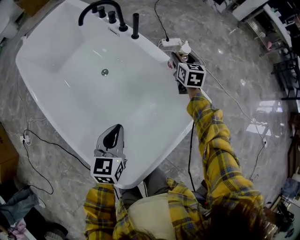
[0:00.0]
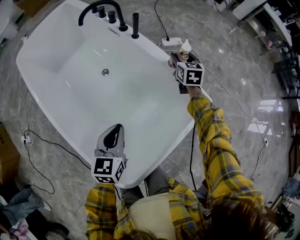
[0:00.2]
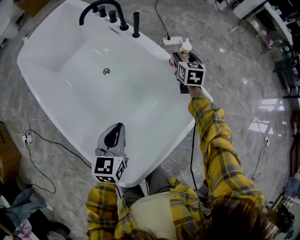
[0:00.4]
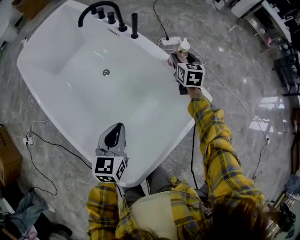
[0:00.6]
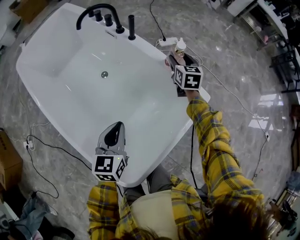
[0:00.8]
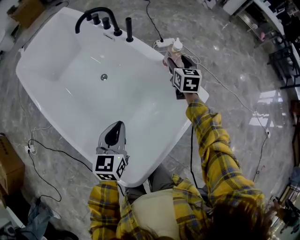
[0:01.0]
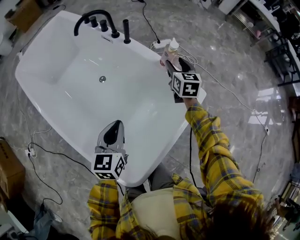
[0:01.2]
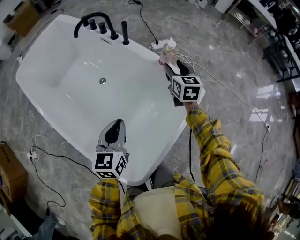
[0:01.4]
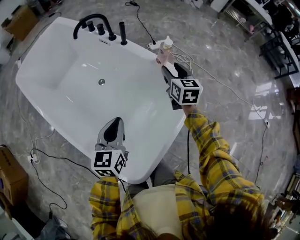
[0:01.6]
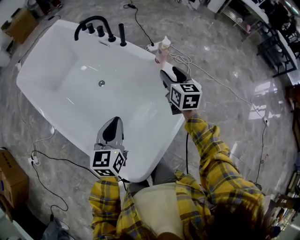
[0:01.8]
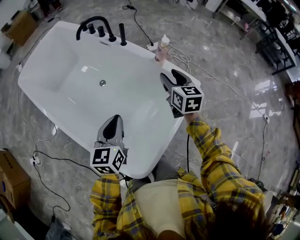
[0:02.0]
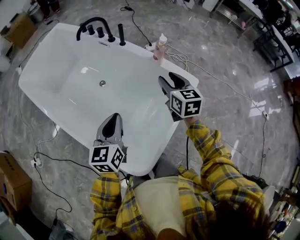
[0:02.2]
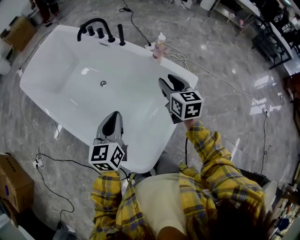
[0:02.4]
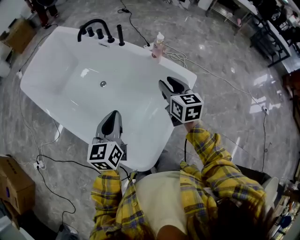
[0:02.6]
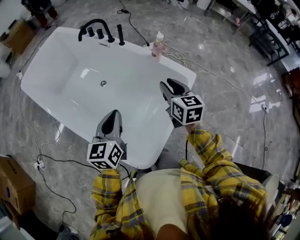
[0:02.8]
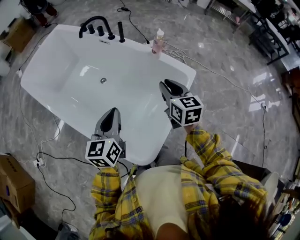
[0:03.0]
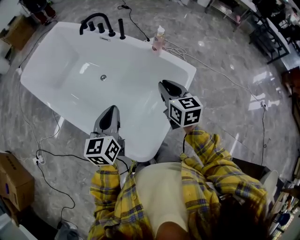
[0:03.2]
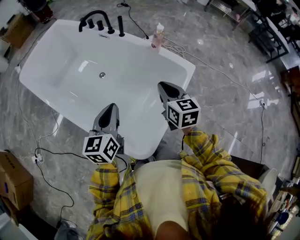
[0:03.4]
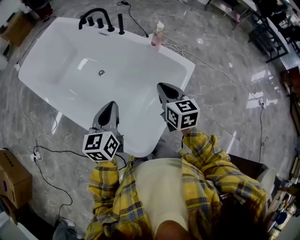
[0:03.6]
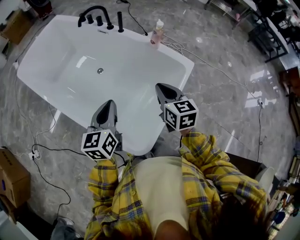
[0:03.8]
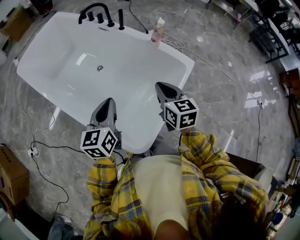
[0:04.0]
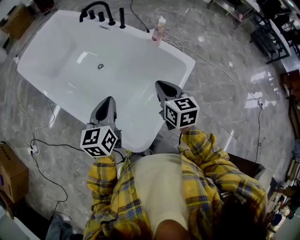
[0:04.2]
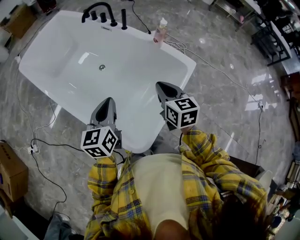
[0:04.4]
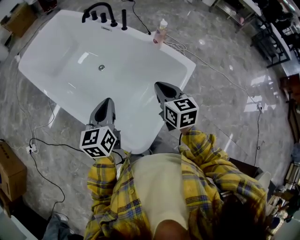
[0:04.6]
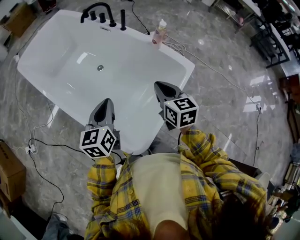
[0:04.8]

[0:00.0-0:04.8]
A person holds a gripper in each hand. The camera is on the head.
0:00.0 to 0:01.6: The right gripper is displaced backward and upward by approximately 15 cm. Meanwhile the left gripper goes about 5 cm upward.
0:01.6 to 0:03.2: The left gripper travels backward and upward by roughly 10 cm; the right gripper shifts approximately 20 cm backward, and closes.
0:03.2 to 0:04.8: There are only small adjustments of the grippers.

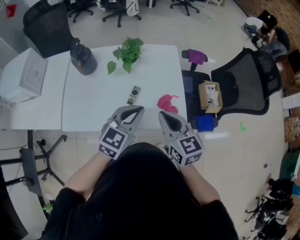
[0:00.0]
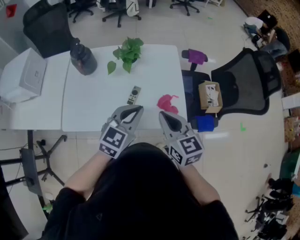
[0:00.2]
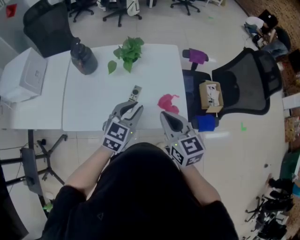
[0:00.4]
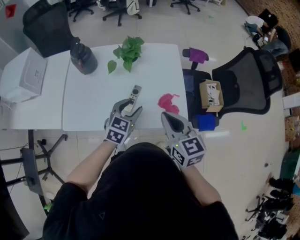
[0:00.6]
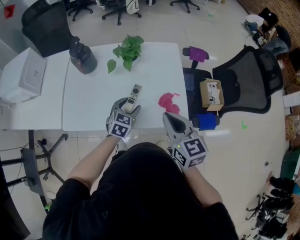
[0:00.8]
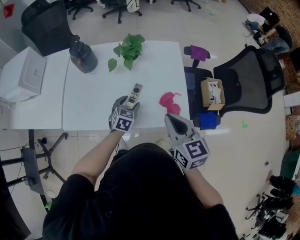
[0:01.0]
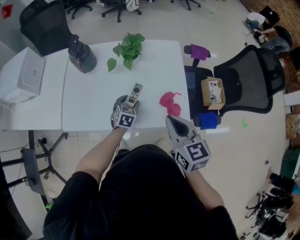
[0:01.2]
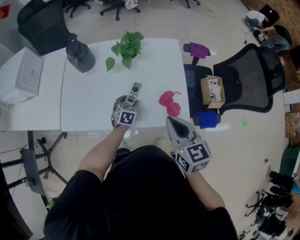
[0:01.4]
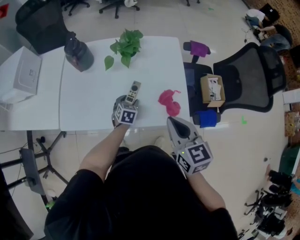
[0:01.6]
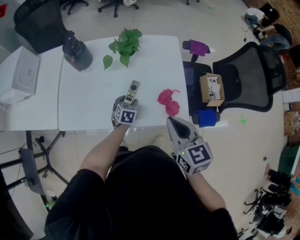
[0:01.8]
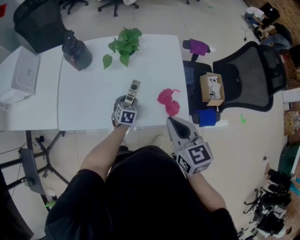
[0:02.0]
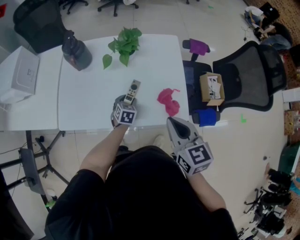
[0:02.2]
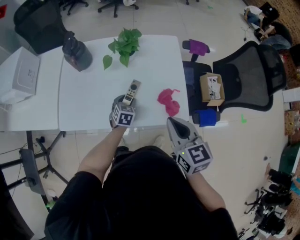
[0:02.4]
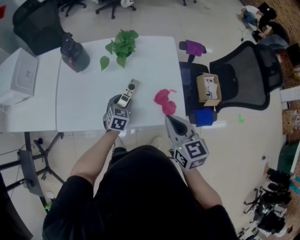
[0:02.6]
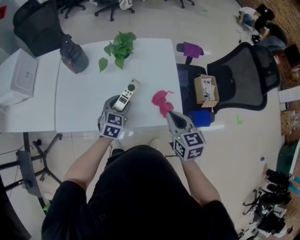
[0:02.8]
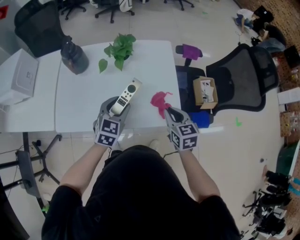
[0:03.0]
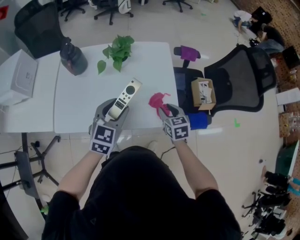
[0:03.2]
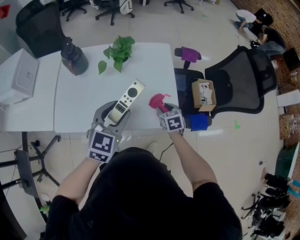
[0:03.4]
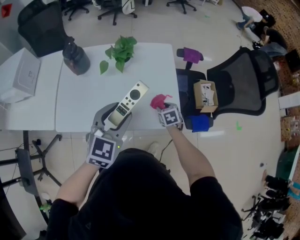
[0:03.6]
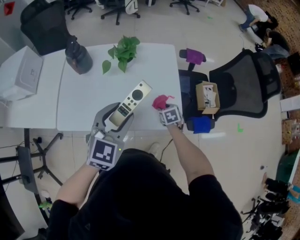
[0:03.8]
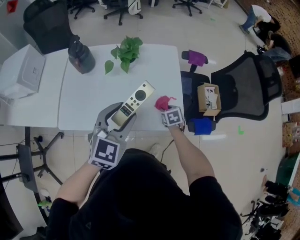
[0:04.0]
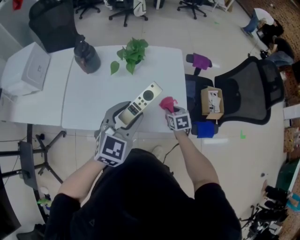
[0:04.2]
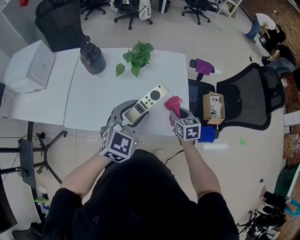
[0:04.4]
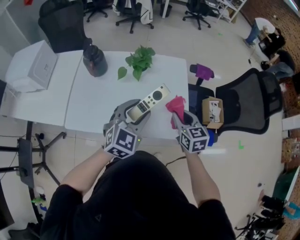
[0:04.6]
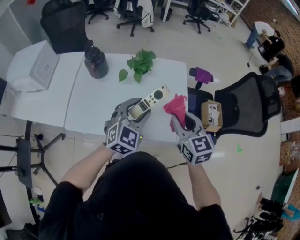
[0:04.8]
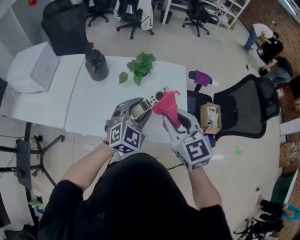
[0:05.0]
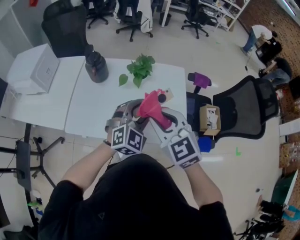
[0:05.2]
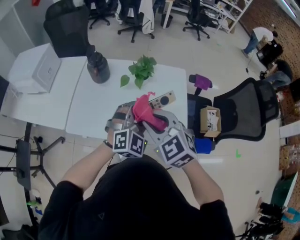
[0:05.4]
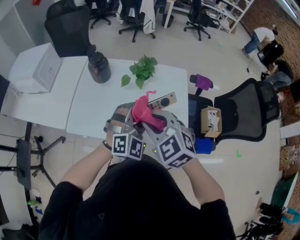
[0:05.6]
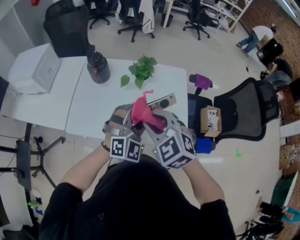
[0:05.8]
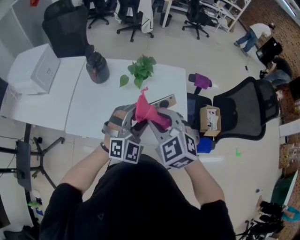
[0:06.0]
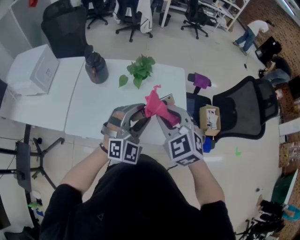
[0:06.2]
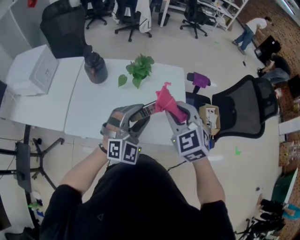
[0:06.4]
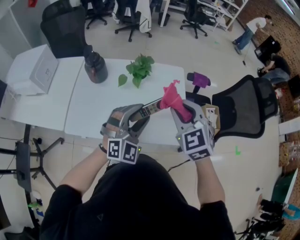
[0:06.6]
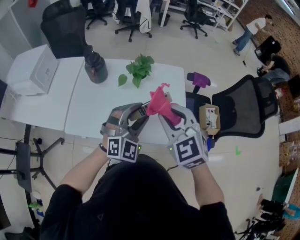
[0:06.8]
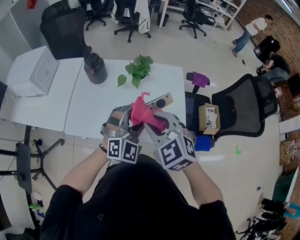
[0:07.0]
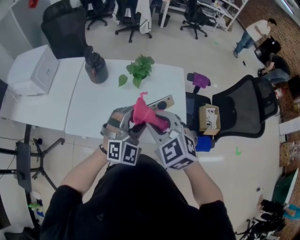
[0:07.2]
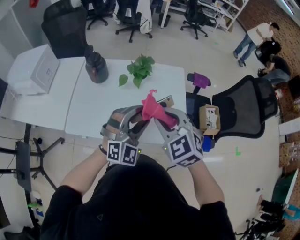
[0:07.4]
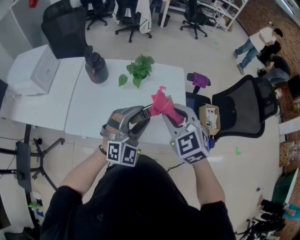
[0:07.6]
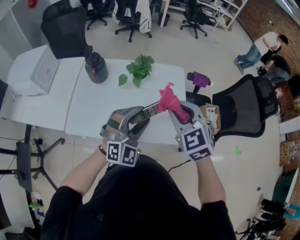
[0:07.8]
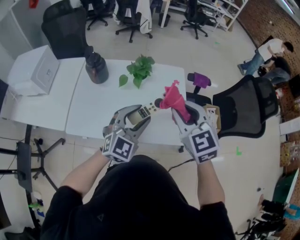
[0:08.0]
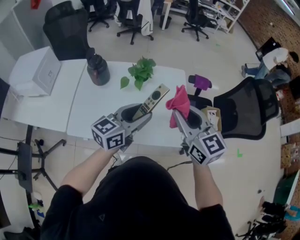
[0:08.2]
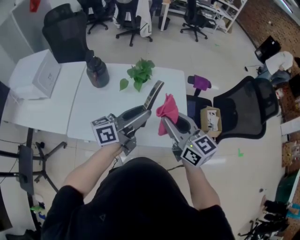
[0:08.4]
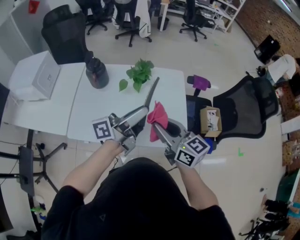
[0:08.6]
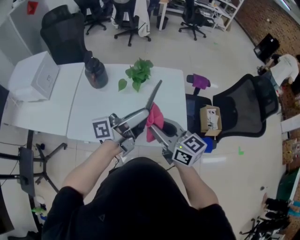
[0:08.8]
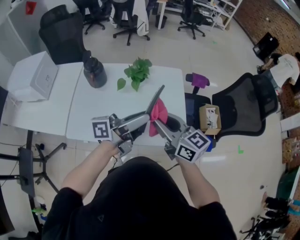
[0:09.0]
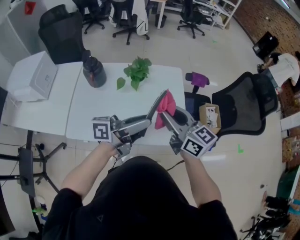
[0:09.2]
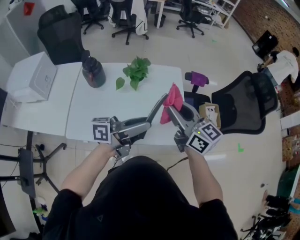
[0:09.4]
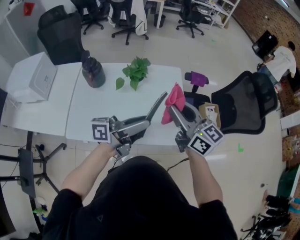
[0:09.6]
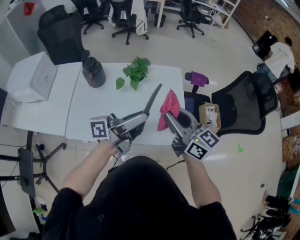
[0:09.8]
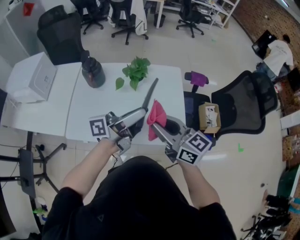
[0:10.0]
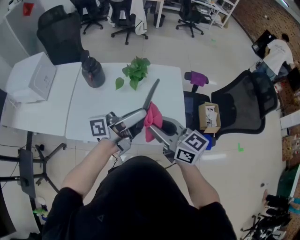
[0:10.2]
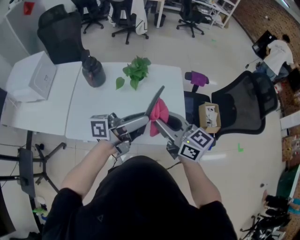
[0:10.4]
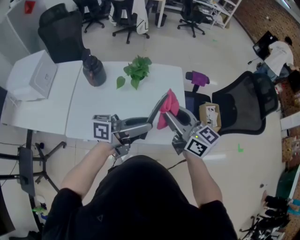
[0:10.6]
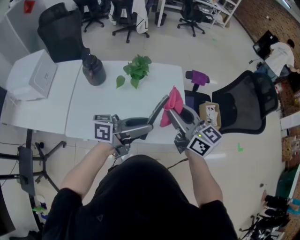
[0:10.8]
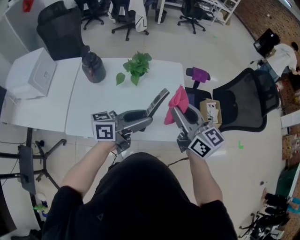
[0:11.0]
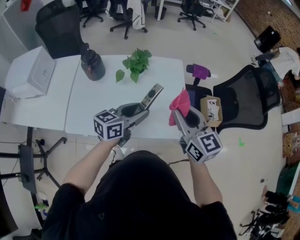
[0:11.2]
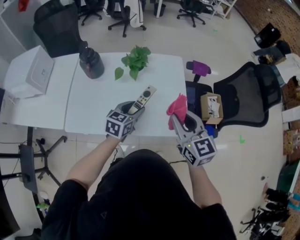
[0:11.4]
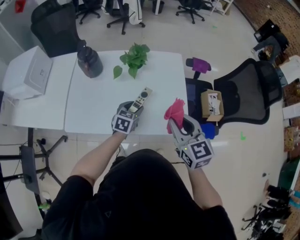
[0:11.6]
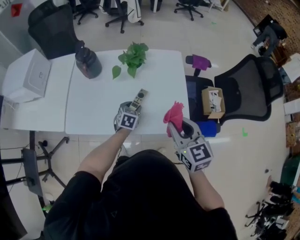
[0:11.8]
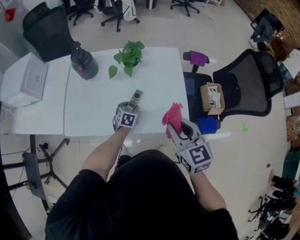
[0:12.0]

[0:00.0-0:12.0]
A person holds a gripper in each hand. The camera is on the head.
0:00.0 to 0:01.6: The left gripper heads downward, covering some 30 cm, angles its fingers downward, by some 30 degrees, and opens its fingers.
0:01.6 to 0:03.0: The right gripper goes roughly 10 cm downward and to the right, while the left gripper shifts approximately 20 cm upward, and rotates some 20 degrees.
0:03.0 to 0:04.4: The right gripper is displaced forward by roughly 5 cm, and moves roughly 20 cm downward and comes back. Meanwhile the left gripper travels upward by some 10 cm.
0:04.4 to 0:06.0: The left gripper swivels roughly 30 degrees; the right gripper shifts roughly 25 cm upward and to the left, and twists roughly 50 degrees counterclockwise, seen from behind.
0:06.0 to 0:07.6: The right gripper swings left and right, some 10 cm each way, with 2 reversals.
0:07.6 to 0:09.0: The right gripper rotates around the line of its fingers by approximately 40 degrees, clockwise from behind; the left gripper rotates around the line of its fingers by roughly 110 degrees, counterclockwise from behind.
0:10.4 to 0:12.0: The right gripper heads downward and to the right, covering about 10 cm, and changes its angle by roughly 30 degrees; the left gripper shifts about 35 cm downward, and angles its fingers downward, by about 70 degrees.

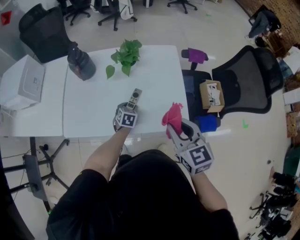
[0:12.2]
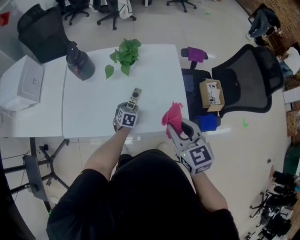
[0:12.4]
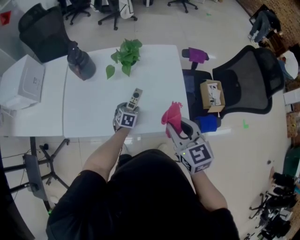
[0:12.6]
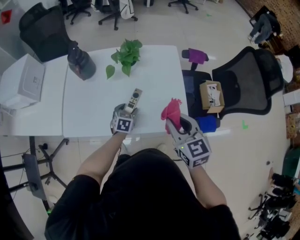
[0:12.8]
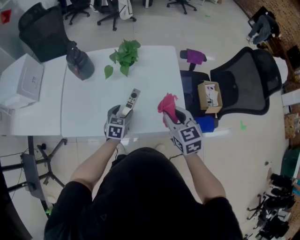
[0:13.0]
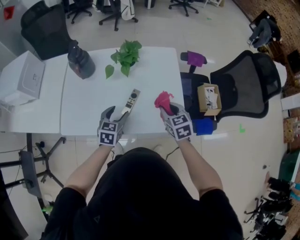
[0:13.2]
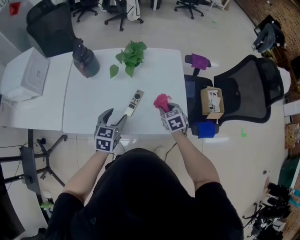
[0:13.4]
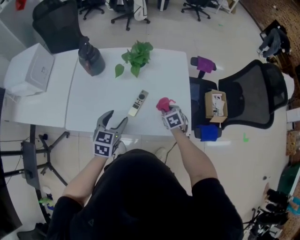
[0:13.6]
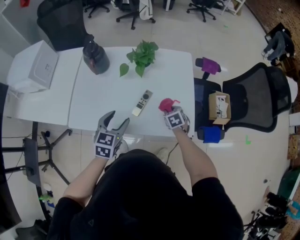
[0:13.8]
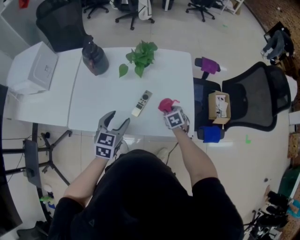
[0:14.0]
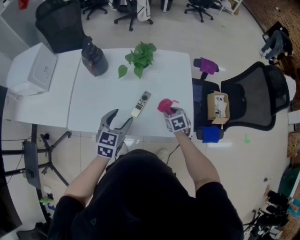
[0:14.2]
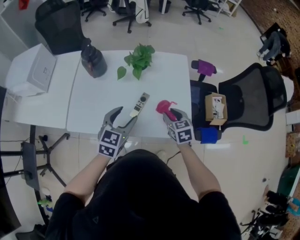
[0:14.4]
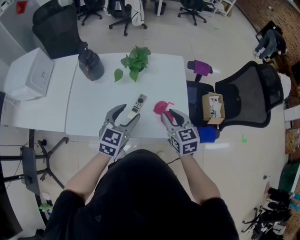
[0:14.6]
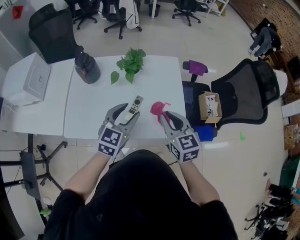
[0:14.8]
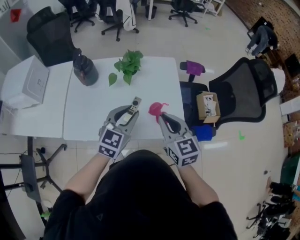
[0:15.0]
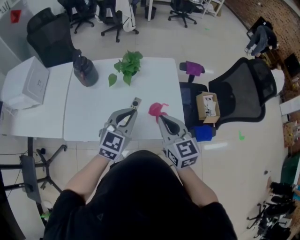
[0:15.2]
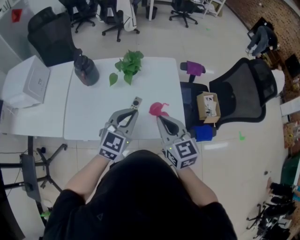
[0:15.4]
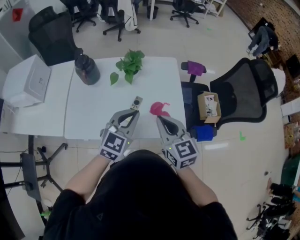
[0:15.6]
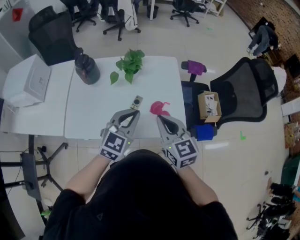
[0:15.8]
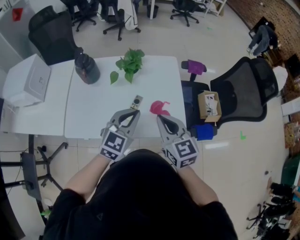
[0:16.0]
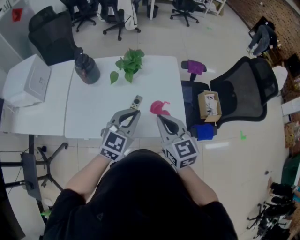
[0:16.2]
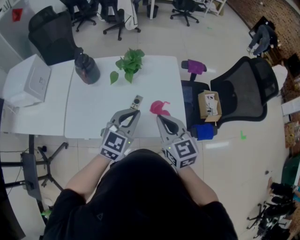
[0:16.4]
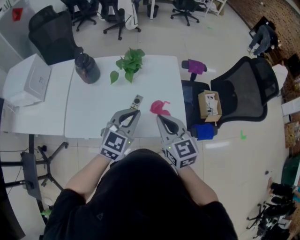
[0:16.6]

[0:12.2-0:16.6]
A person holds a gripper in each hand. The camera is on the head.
0:12.2 to 0:13.6: The left gripper shifts about 20 cm upward and backward; the right gripper heads downward and forward, covering approximately 30 cm, and points its fingers about 30 degrees further downward.
0:13.6 to 0:15.2: The left gripper moves upward and to the right, approximately 15 cm, swivels roughly 30 degrees, and closes its fingers. Meanwhile the right gripper heads upward, covering some 25 cm, points its fingers roughly 40 degrees further upward, and closes up.
0:15.2 to 0:16.6: There are only small adjustments of the grippers.

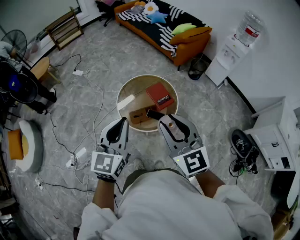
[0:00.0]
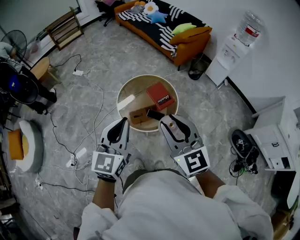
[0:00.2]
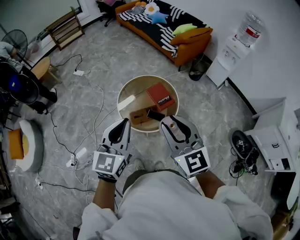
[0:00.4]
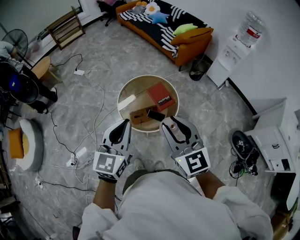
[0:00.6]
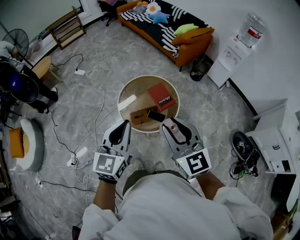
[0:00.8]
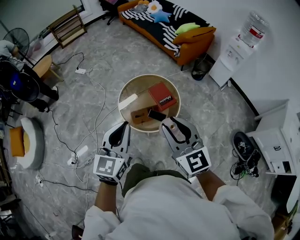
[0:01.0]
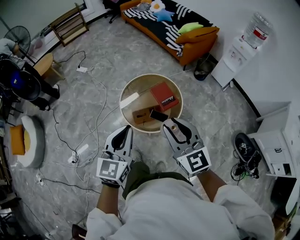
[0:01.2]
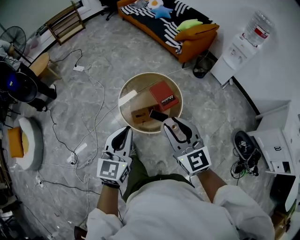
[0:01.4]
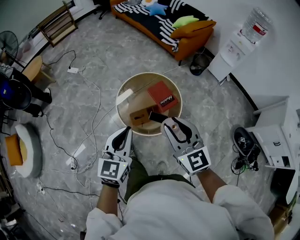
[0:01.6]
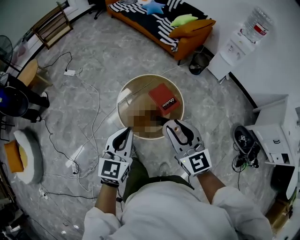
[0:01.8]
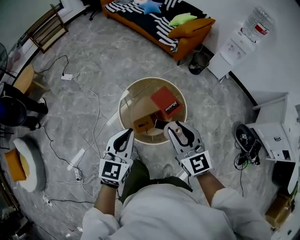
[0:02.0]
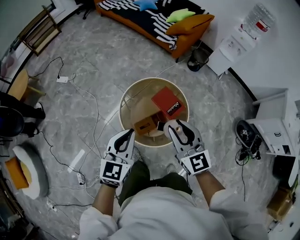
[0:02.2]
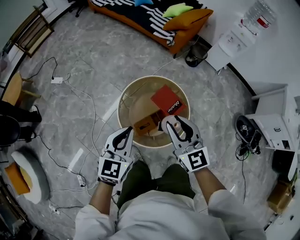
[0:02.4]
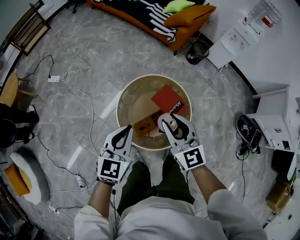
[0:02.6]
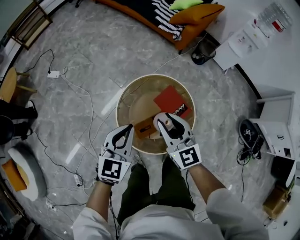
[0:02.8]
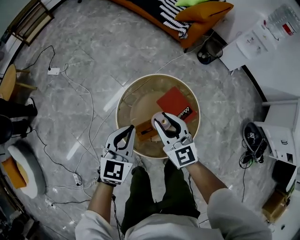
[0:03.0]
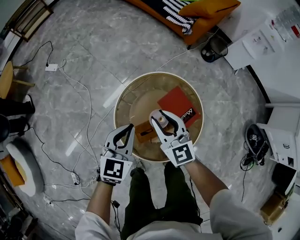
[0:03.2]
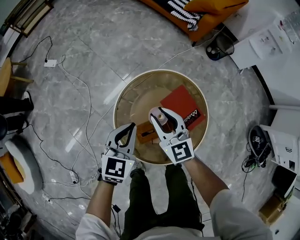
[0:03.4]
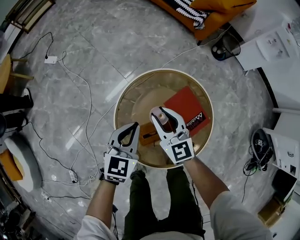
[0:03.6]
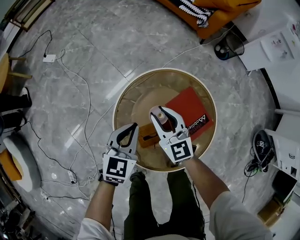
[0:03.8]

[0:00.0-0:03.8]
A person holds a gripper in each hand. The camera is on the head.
0:00.0 to 0:01.2: There are only small adjustments of the grippers.
0:01.2 to 0:02.6: Both grippers move forward and downward, about 35 cm. The left gripper rotates some 20 degrees.
0:02.6 to 0:03.8: The two grippers go some 35 cm downward and forward.
